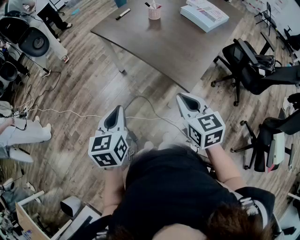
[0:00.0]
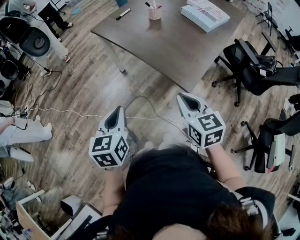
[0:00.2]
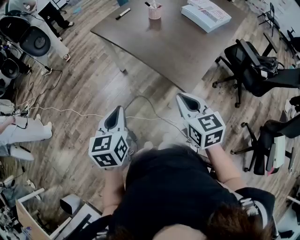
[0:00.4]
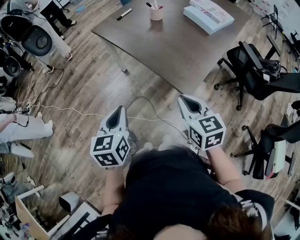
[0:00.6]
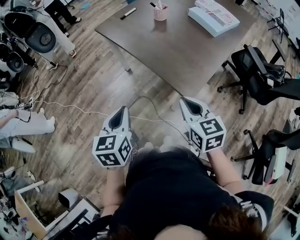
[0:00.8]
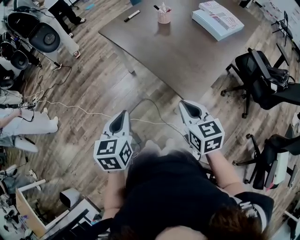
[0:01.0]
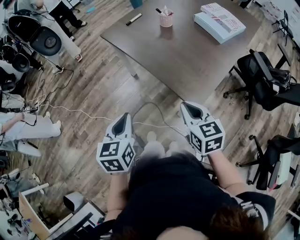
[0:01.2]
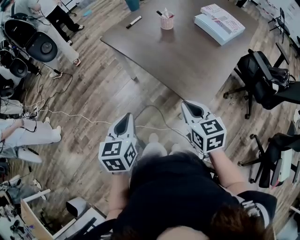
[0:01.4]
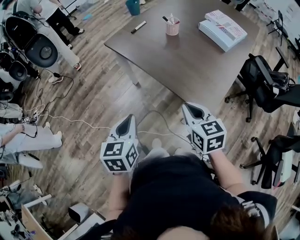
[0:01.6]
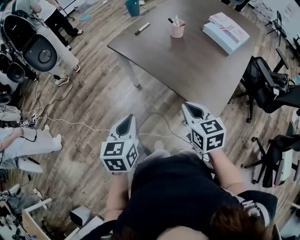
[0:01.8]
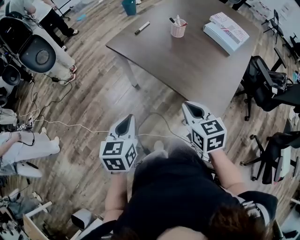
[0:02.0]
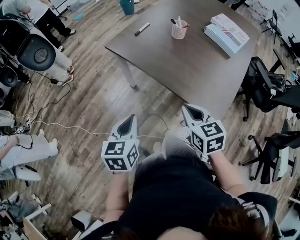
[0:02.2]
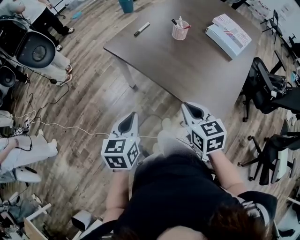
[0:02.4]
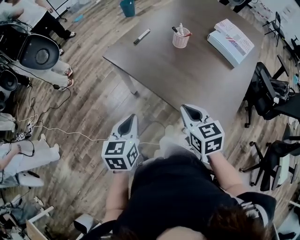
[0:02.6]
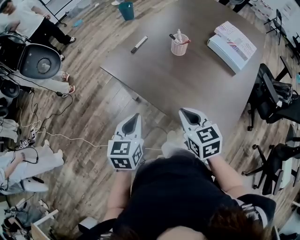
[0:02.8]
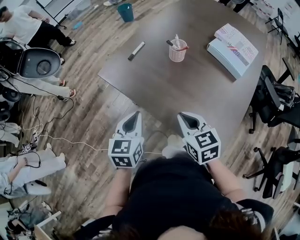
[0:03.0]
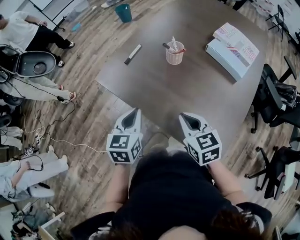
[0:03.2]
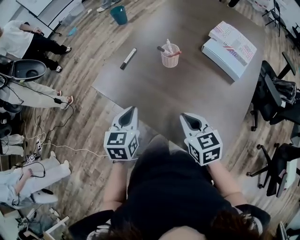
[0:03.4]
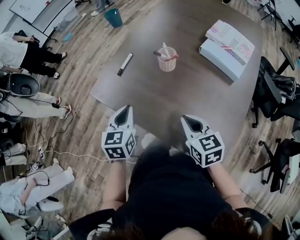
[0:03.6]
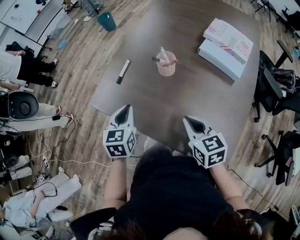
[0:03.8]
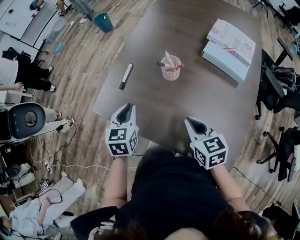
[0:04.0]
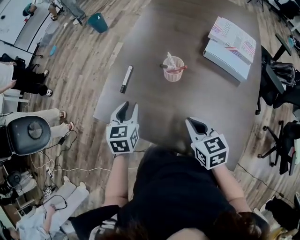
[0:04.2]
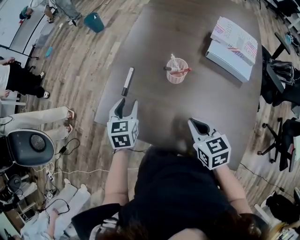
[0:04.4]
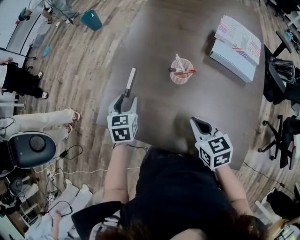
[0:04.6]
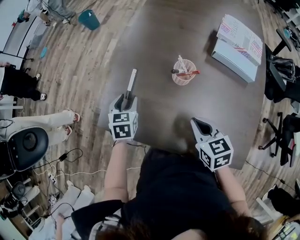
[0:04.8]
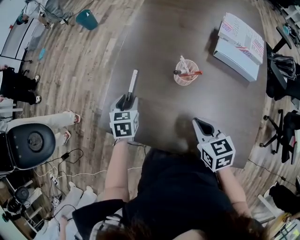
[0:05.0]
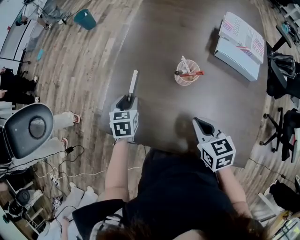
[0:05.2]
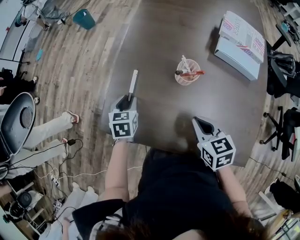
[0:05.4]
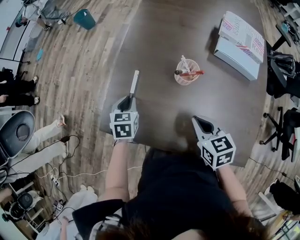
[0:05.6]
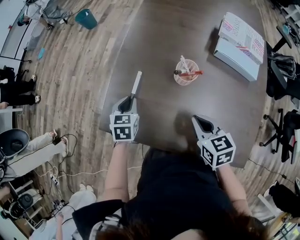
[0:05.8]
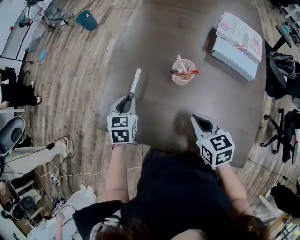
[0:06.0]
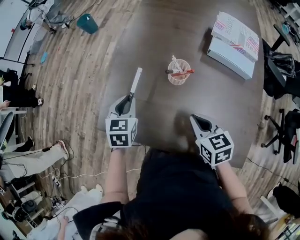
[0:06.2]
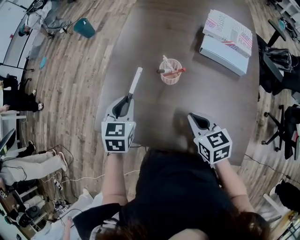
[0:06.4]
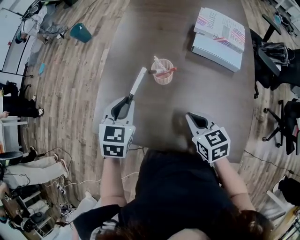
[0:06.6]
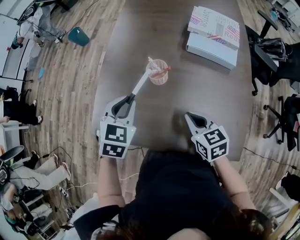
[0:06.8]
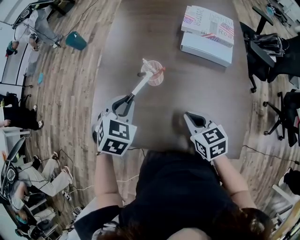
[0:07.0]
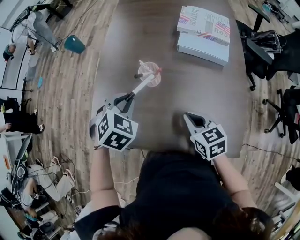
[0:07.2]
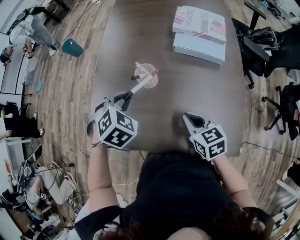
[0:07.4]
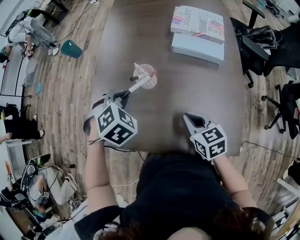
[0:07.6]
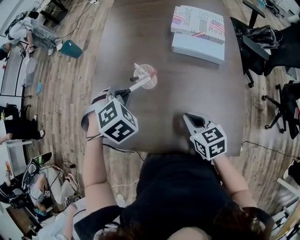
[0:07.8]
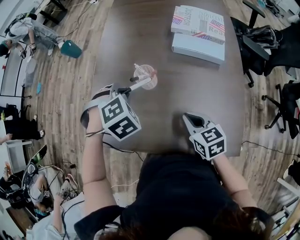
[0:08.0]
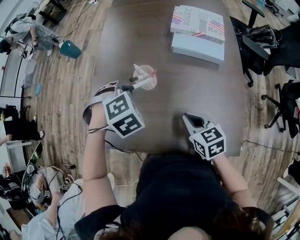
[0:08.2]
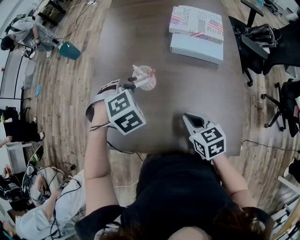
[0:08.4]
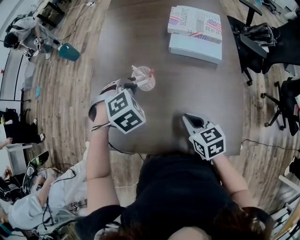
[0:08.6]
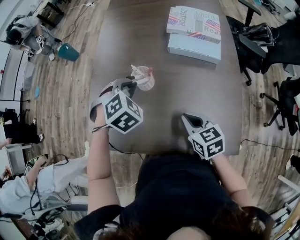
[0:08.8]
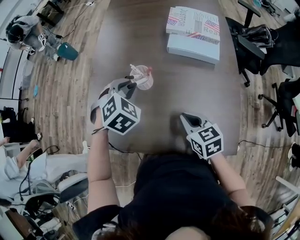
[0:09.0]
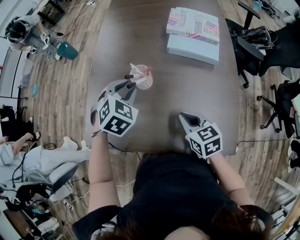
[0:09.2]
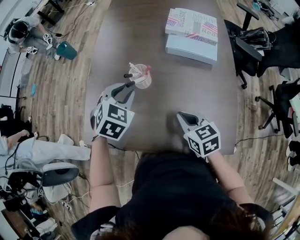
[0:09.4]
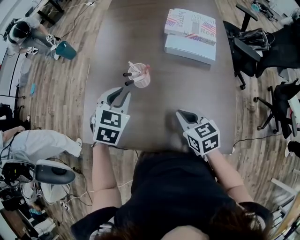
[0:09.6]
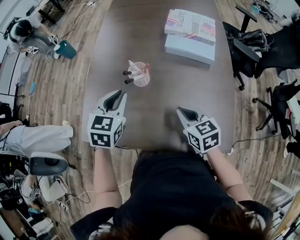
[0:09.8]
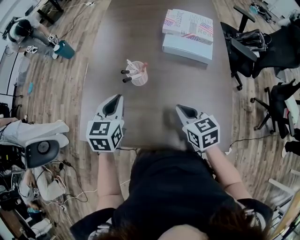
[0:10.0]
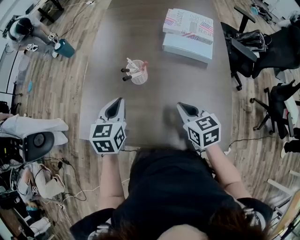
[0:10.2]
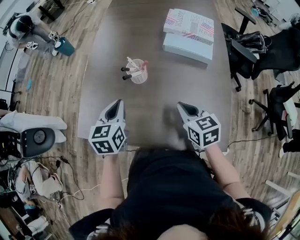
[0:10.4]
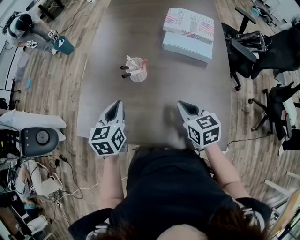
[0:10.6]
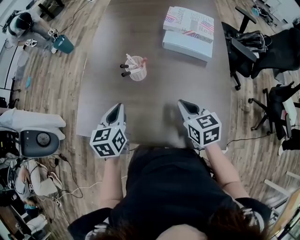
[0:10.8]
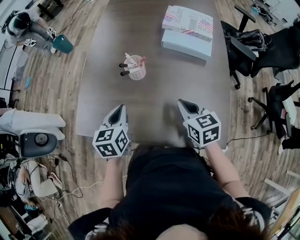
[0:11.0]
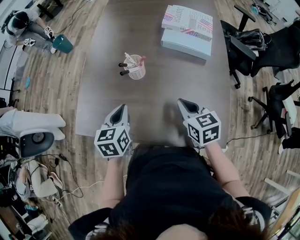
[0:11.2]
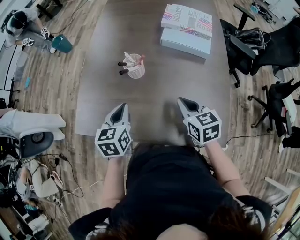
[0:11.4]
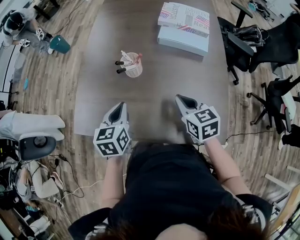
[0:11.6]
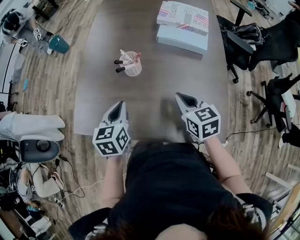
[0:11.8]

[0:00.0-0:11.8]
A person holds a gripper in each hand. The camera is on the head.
0:00.0 to 0:01.4: Both grippers move forward, about 10 cm.
0:01.4 to 0:03.0: The grippers both shift forward by about 25 cm.
0:03.0 to 0:04.4: The left gripper travels forward by approximately 30 cm, and opens; the right gripper moves forward, about 15 cm.
0:04.4 to 0:06.0: The left gripper closes.
0:06.0 to 0:07.4: The left gripper heads to the right and upward, covering roughly 20 cm, and twists some 50 degrees clockwise, seen from behind; the right gripper shifts about 10 cm to the right.
0:07.4 to 0:08.8: The left gripper moves some 5 cm.
0:08.8 to 0:10.4: The left gripper goes approximately 10 cm backward and to the left, and rotates around the line of its fingers by about 60 degrees, counterclockwise from behind.
0:10.4 to 0:11.8: The grippers move only a little.

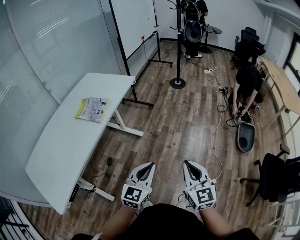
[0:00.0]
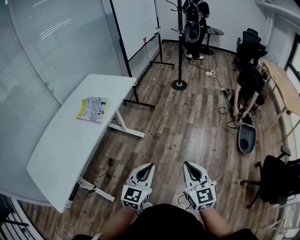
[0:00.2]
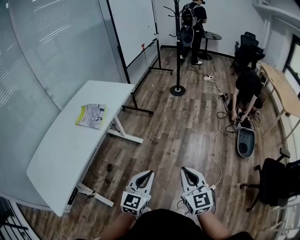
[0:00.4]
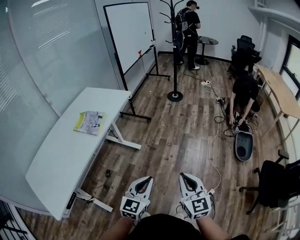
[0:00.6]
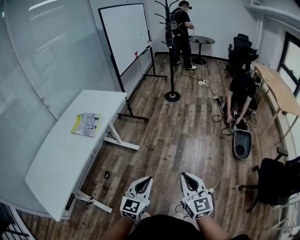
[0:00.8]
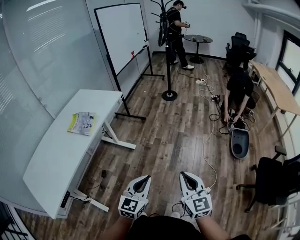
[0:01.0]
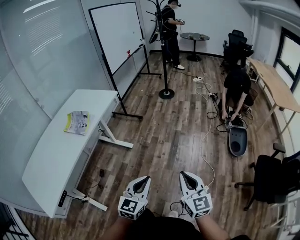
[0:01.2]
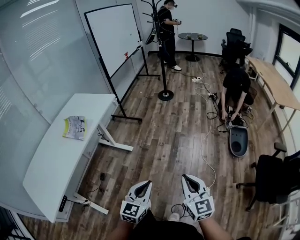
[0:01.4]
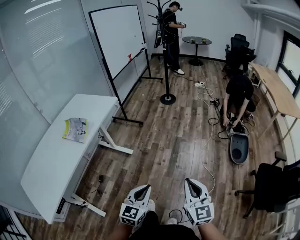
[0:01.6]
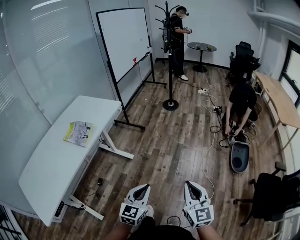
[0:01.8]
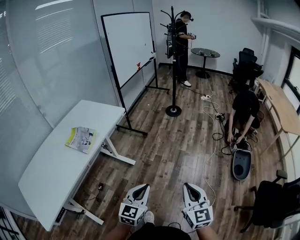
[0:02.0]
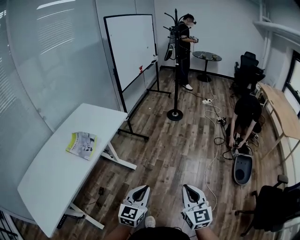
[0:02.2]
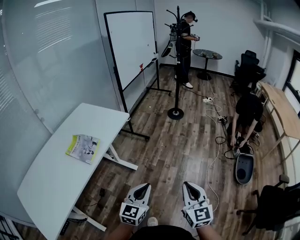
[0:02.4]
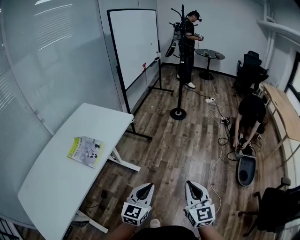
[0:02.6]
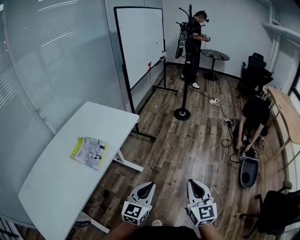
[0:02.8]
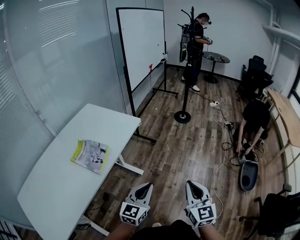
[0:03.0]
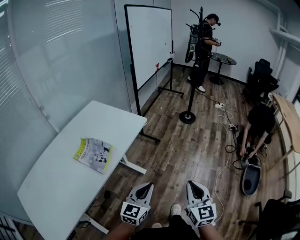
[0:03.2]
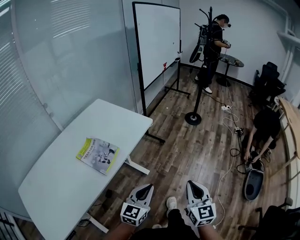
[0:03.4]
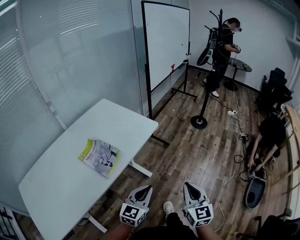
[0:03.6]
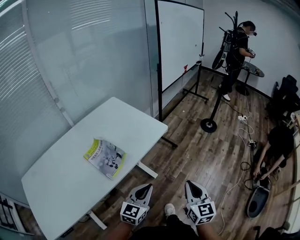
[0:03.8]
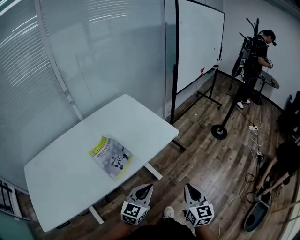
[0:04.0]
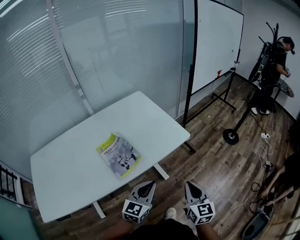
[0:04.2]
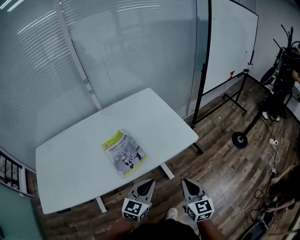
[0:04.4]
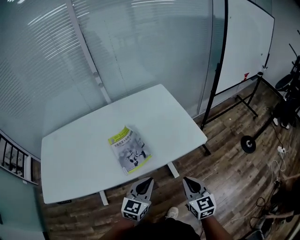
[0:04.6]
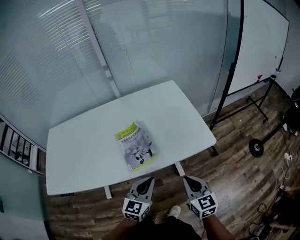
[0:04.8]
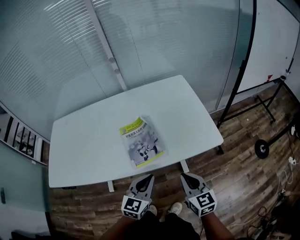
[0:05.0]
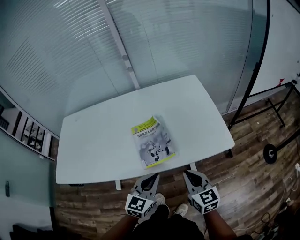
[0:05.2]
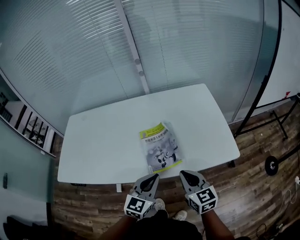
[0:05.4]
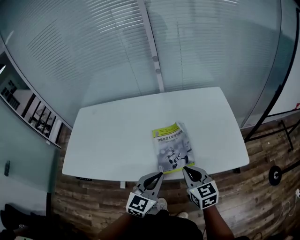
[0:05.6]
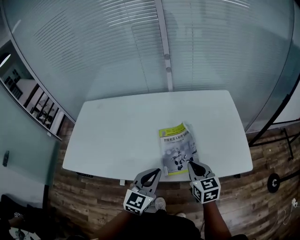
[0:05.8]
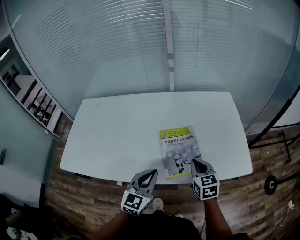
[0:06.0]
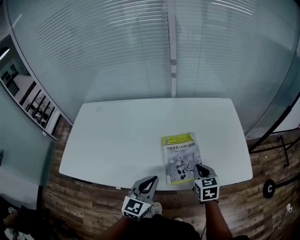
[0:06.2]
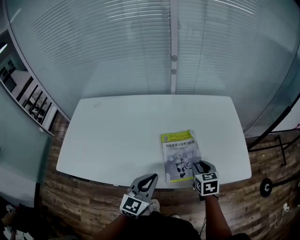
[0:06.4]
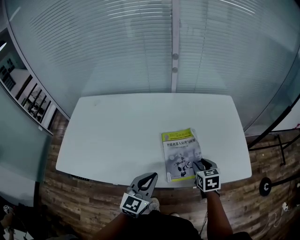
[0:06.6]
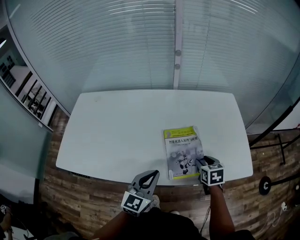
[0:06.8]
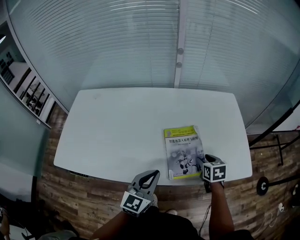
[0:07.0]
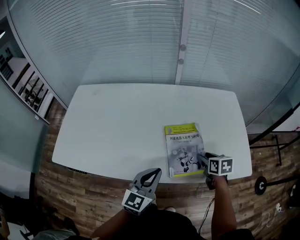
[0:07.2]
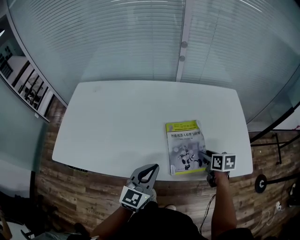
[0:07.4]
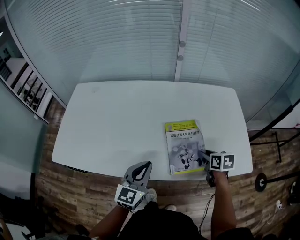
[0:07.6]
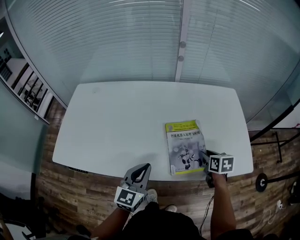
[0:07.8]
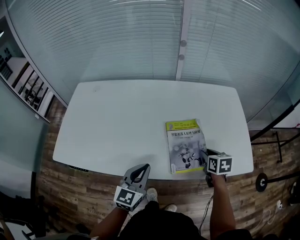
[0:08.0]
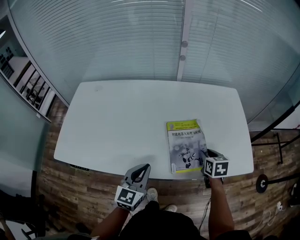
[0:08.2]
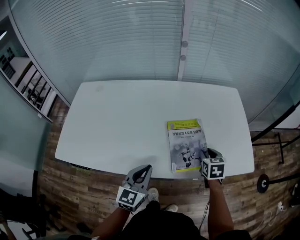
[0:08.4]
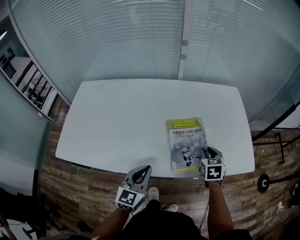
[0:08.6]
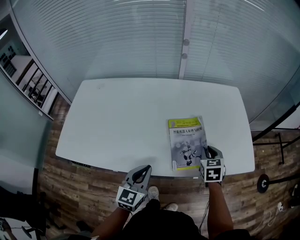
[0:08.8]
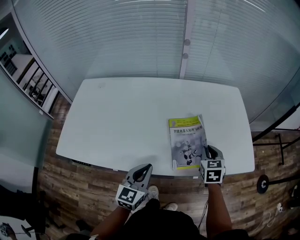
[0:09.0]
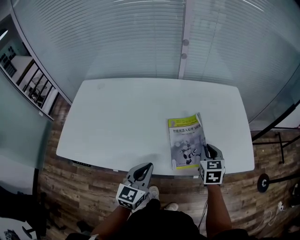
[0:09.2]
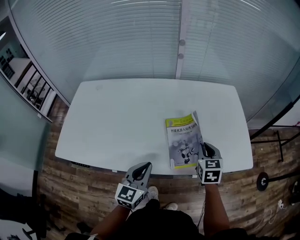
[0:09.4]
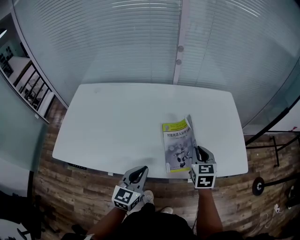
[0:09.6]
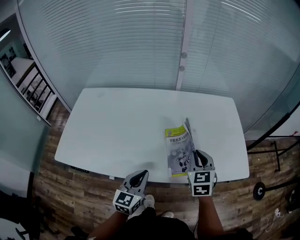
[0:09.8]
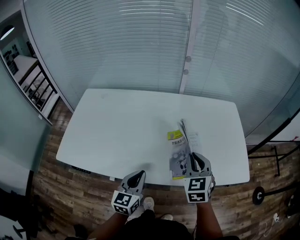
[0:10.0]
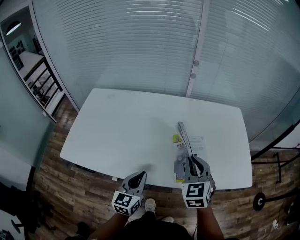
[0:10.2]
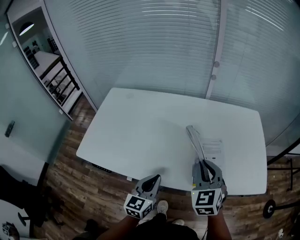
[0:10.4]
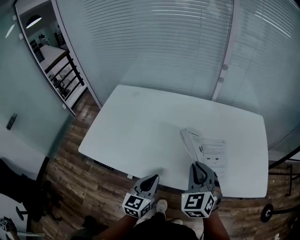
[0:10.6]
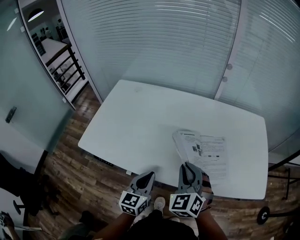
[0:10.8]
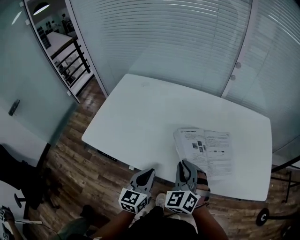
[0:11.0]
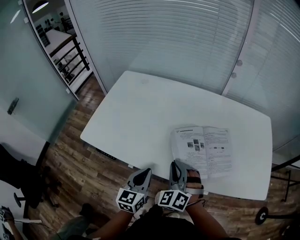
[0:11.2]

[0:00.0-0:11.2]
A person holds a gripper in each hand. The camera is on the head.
0:00.0 to 0:01.6: The grippers both shift to the right by about 15 cm.
0:01.6 to 0:03.2: Both grippers move forward and to the left, roughly 30 cm.
0:03.2 to 0:04.8: The left gripper ends up some 20 cm from where it was, and rotates roughly 50 degrees. The right gripper moves approximately 35 cm, and rotates approximately 60 degrees.
0:04.8 to 0:06.4: The left gripper moves to the left and forward, approximately 20 cm. The right gripper heads forward and to the left, covering approximately 25 cm, and rotates some 20 degrees.
0:06.4 to 0:08.0: The left gripper travels to the left by roughly 5 cm.
0:08.0 to 0:09.6: The right gripper travels upward by about 10 cm, rotates about 30 degrees, and closes.
0:09.6 to 0:11.2: The left gripper travels to the left by roughly 15 cm, and rotates approximately 20 degrees, while the right gripper is displaced to the left by some 30 cm, and twists roughly 50 degrees counterclockwise, seen from behind.

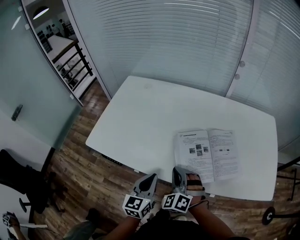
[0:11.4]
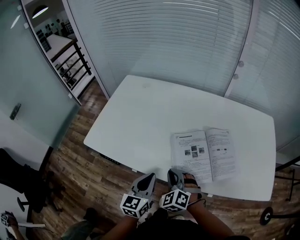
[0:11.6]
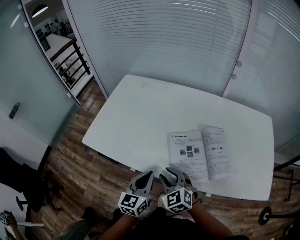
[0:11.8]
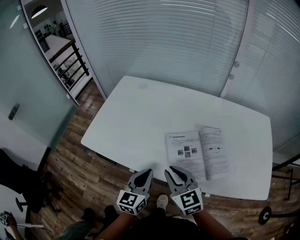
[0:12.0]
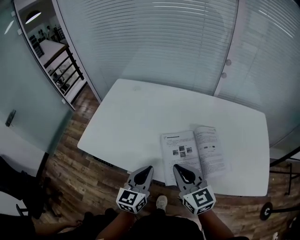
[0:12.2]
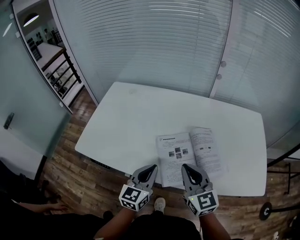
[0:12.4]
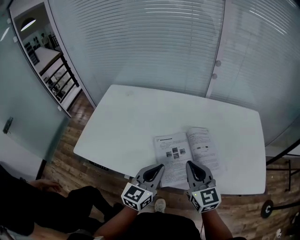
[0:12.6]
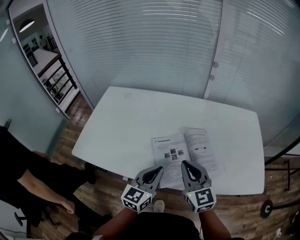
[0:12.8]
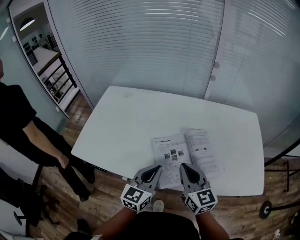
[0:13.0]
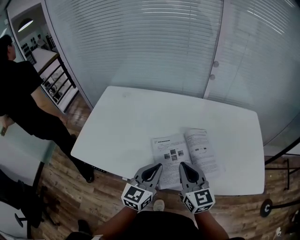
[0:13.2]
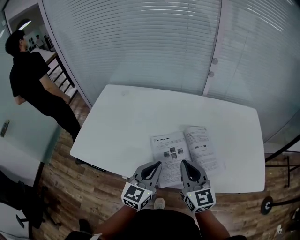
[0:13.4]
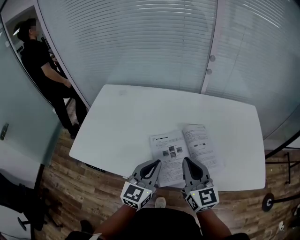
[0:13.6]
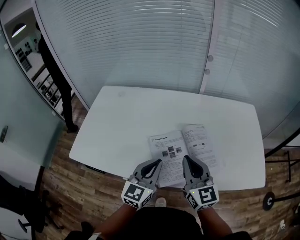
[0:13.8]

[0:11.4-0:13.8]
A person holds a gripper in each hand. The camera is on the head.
0:11.4 to 0:12.6: The two grippers go some 15 cm to the right and upward. The right gripper rolls clockwise, seen from behind, by roughly 50 degrees, and opens, then closes once more.
0:12.6 to 0:13.8: There are only small adjustments of the grippers.
